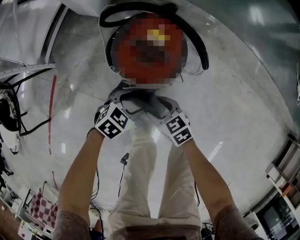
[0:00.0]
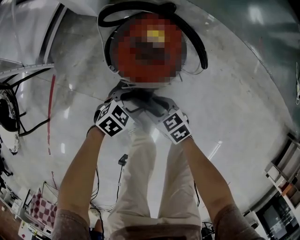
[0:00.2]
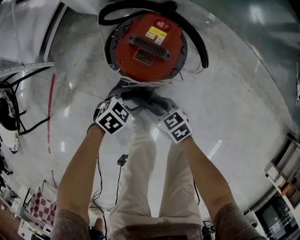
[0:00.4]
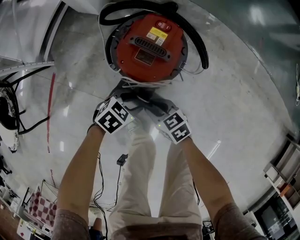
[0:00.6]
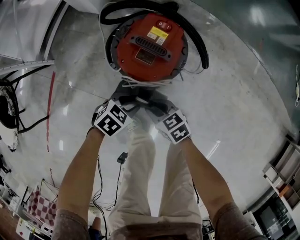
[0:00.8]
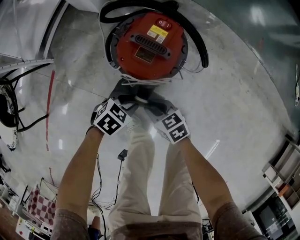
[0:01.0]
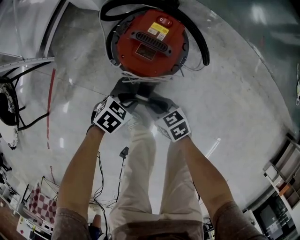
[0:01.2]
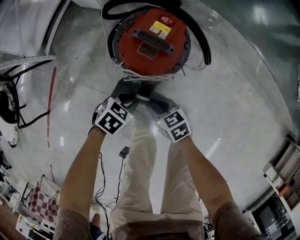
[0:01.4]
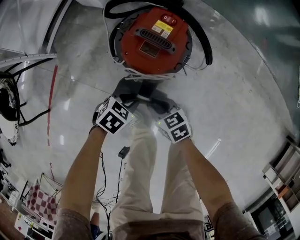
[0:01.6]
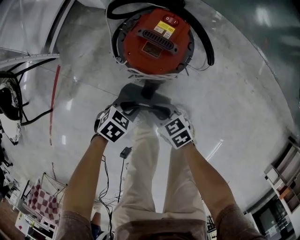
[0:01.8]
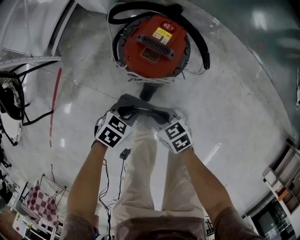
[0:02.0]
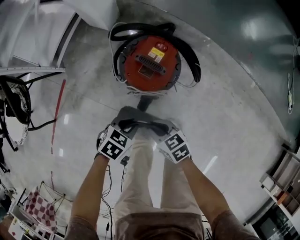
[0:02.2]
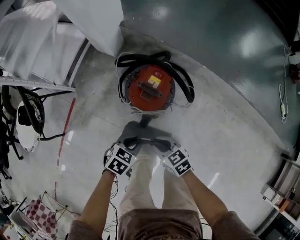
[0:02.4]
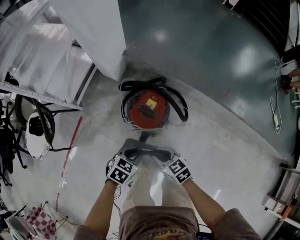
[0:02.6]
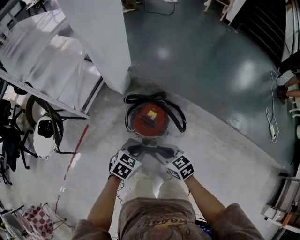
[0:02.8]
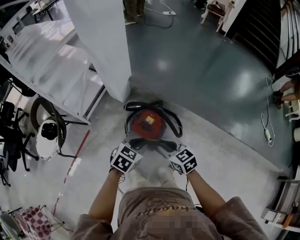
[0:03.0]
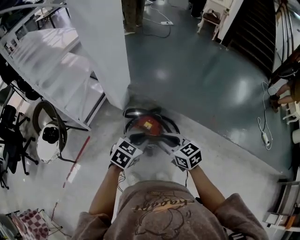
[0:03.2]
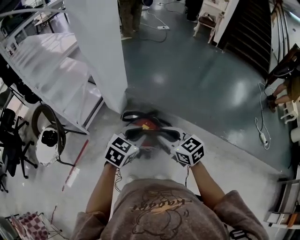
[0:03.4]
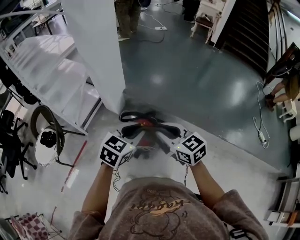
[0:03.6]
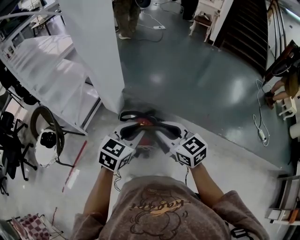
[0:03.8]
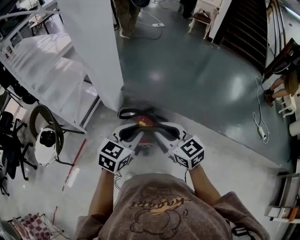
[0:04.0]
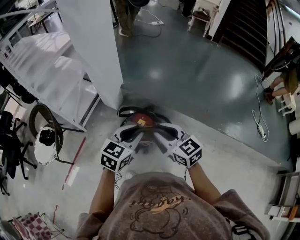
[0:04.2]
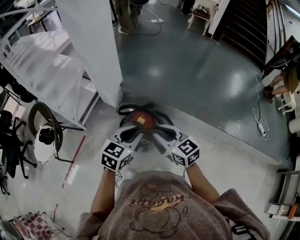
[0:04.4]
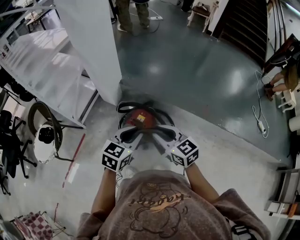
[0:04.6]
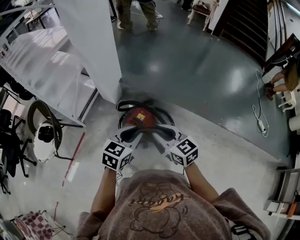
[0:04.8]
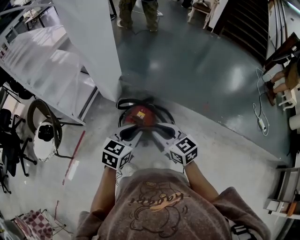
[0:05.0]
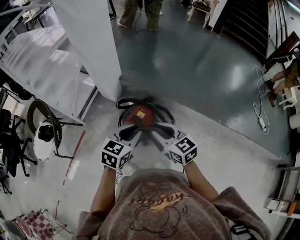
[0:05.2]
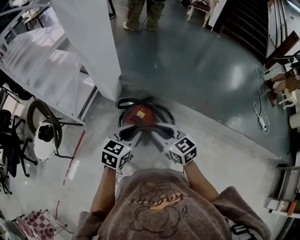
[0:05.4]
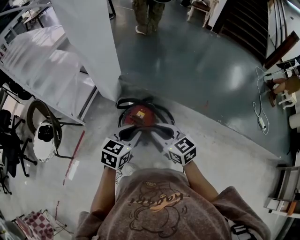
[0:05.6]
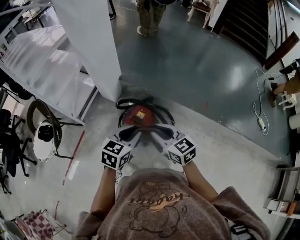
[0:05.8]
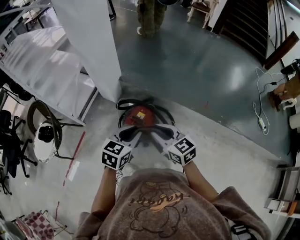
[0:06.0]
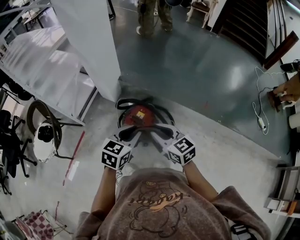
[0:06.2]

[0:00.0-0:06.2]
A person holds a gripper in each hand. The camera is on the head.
0.0 to 1.6 s: The right gripper closes its fingers. The left gripper closes its fingers.
1.6 to 3.2 s: Both grippers move upward, roughly 50 cm. The left gripper swivels about 30 degrees; the right gripper turns by approximately 30 degrees.
4.6 to 6.2 s: The grippers stay close to where they were, moving slightly.

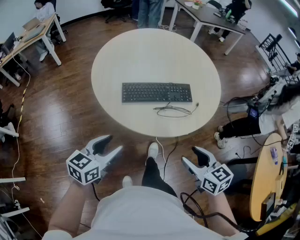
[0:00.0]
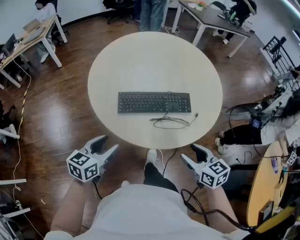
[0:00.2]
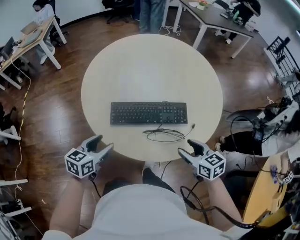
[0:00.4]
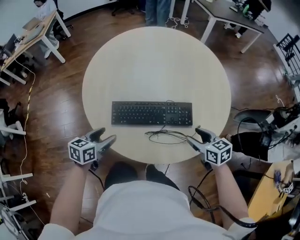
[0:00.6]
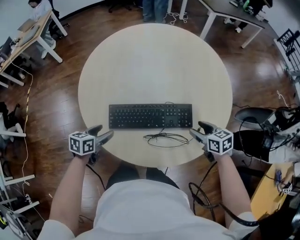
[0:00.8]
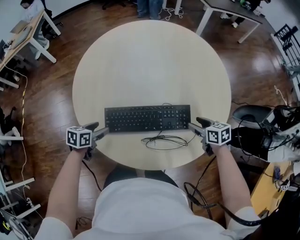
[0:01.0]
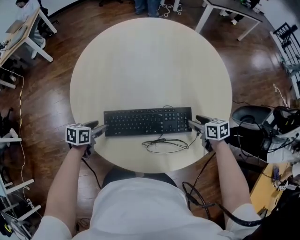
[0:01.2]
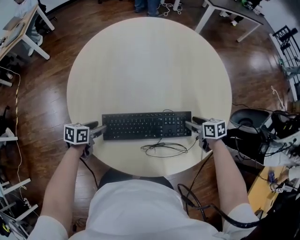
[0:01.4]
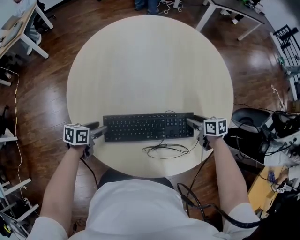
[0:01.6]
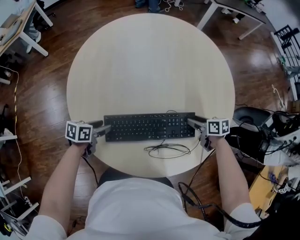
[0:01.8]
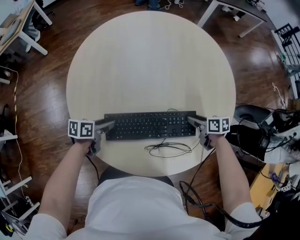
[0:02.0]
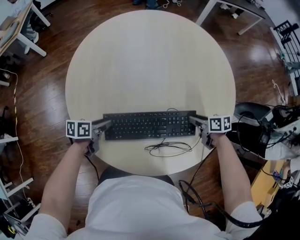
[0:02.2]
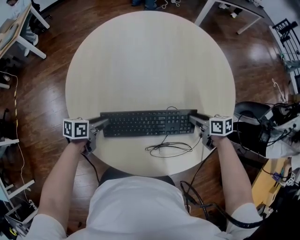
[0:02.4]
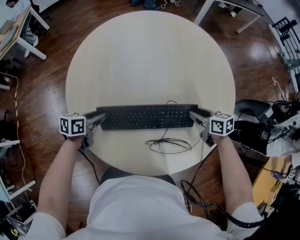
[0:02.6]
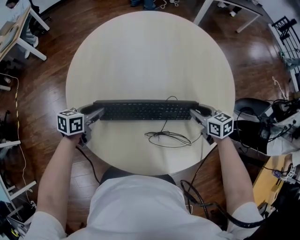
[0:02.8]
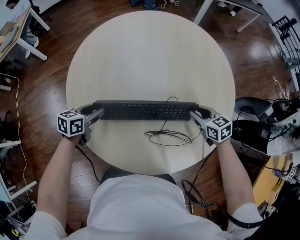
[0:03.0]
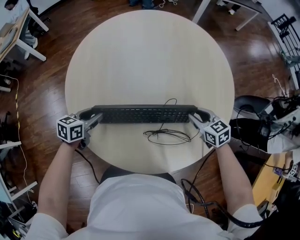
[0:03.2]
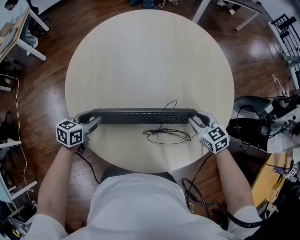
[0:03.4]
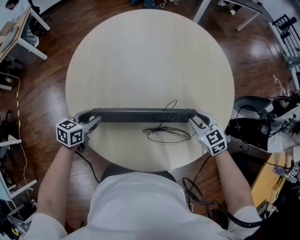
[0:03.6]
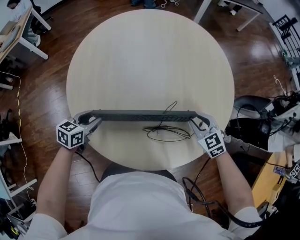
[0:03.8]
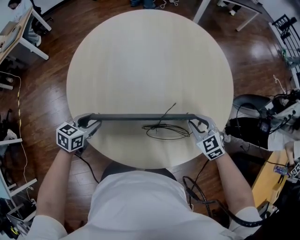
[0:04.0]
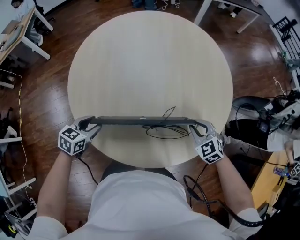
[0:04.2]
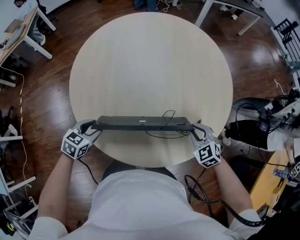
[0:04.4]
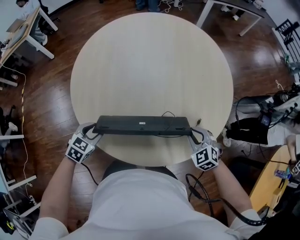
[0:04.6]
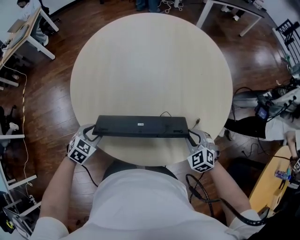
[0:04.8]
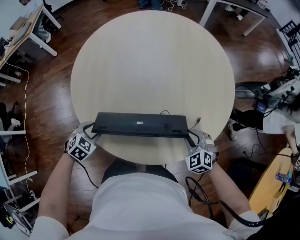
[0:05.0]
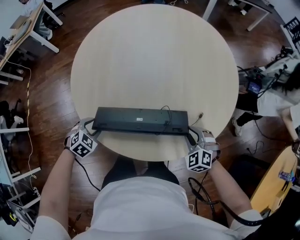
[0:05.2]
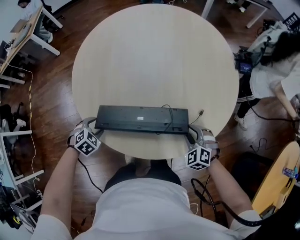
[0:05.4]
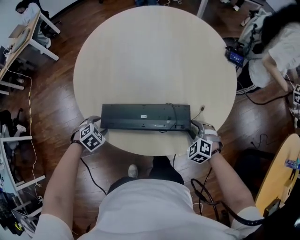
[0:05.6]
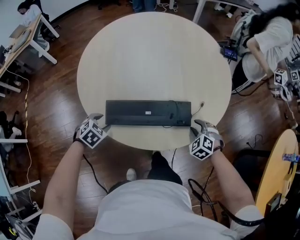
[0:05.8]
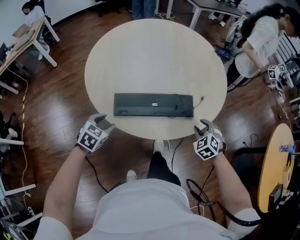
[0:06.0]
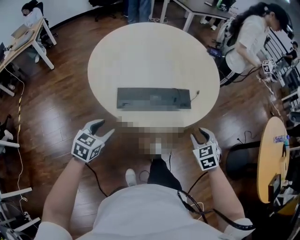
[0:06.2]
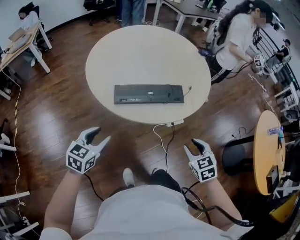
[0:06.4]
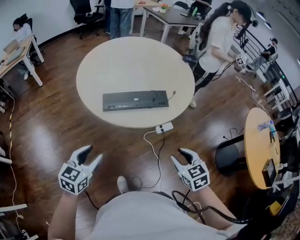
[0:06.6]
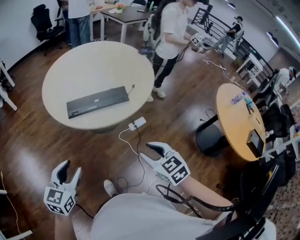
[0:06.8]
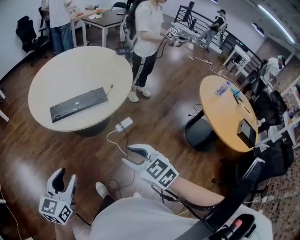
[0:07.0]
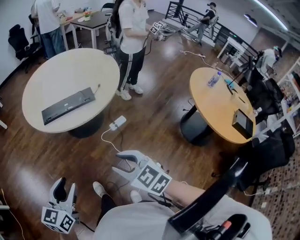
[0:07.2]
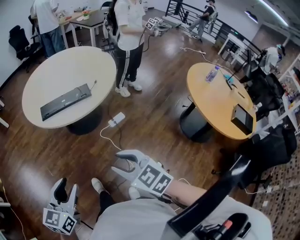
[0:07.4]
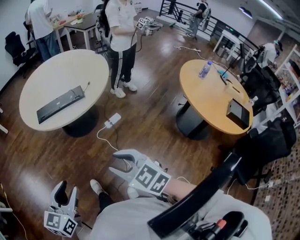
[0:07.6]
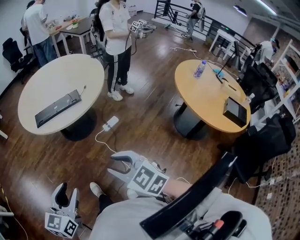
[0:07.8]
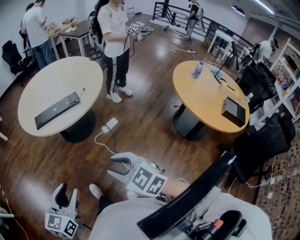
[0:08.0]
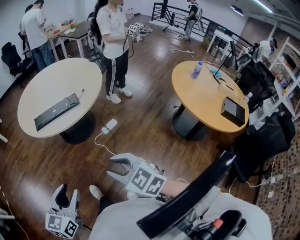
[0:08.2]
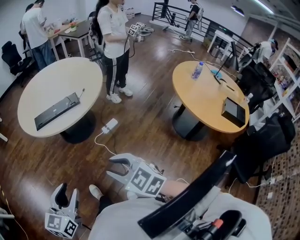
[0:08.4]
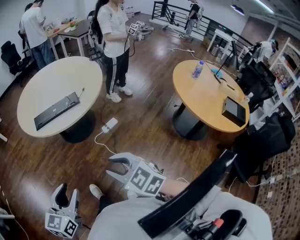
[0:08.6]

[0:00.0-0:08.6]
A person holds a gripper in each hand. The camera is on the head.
0.0 to 1.4 s: The right gripper travels forward, downward and to the right by approximately 40 cm, and swivels some 30 degrees. Meanwhile the left gripper goes about 35 cm forward and downward, and swivels about 30 degrees.
1.4 to 2.8 s: The left gripper moves upward and forward, roughly 10 cm, and closes its fingers. Meanwhile the right gripper travels upward by some 5 cm, and closes its fingers.
2.8 to 4.4 s: Both grippers travel together backward, roughly 15 cm. The right gripper rotates around the line of its fingers by some 40 degrees, counterclockwise from behind. Meanwhile the left gripper swivels about 30 degrees.
4.4 to 5.8 s: The left gripper shifts by roughly 5 cm, and changes its angle by some 30 degrees; the right gripper goes roughly 5 cm downward, turns by some 20 degrees, and opens.
5.8 to 7.2 s: The two grippers travel together, backward, approximately 40 cm. The grippers both shift upward by about 25 cm. The right gripper swivels approximately 50 degrees, while the left gripper angles its fingers upward, by roughly 50 degrees.
7.2 to 8.6 s: The right gripper heads backward, covering about 5 cm. The left gripper is displaced backward and to the right by roughly 10 cm.

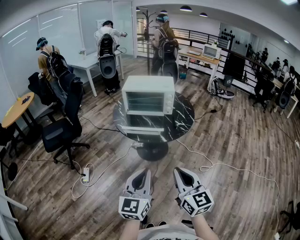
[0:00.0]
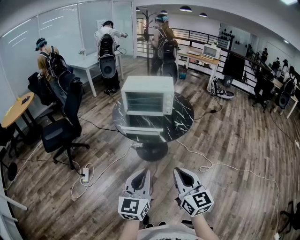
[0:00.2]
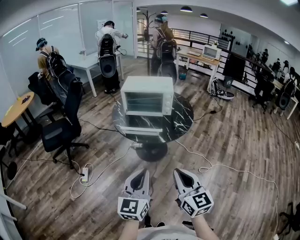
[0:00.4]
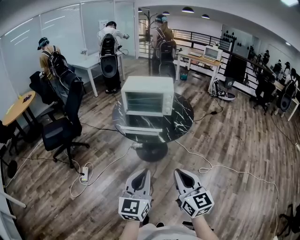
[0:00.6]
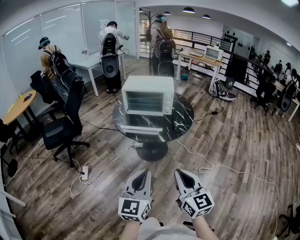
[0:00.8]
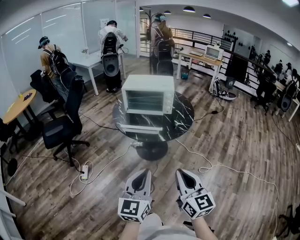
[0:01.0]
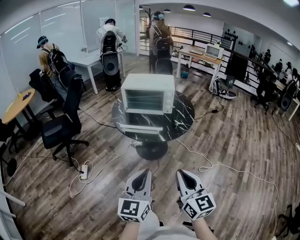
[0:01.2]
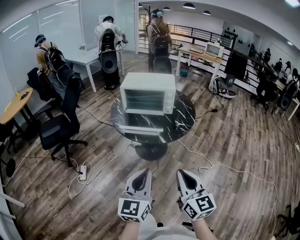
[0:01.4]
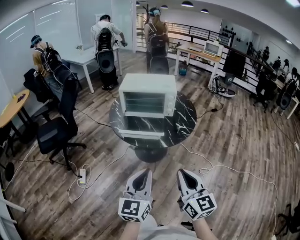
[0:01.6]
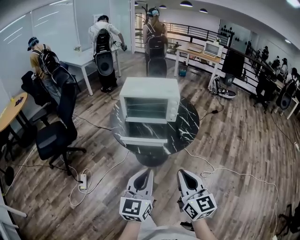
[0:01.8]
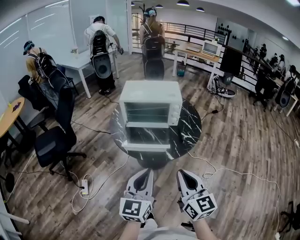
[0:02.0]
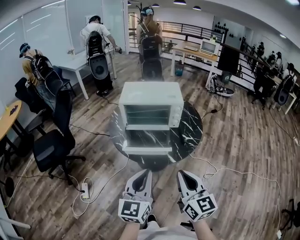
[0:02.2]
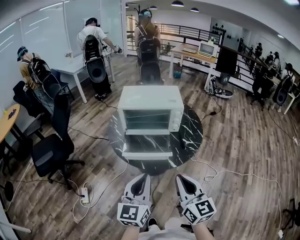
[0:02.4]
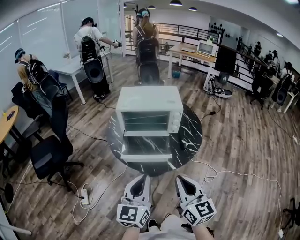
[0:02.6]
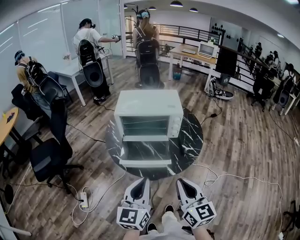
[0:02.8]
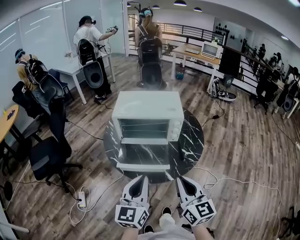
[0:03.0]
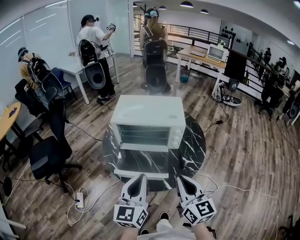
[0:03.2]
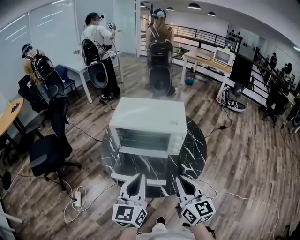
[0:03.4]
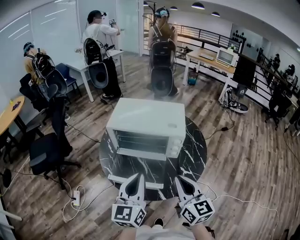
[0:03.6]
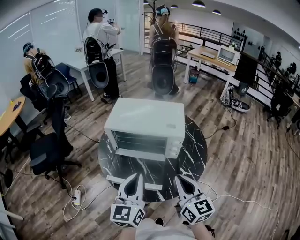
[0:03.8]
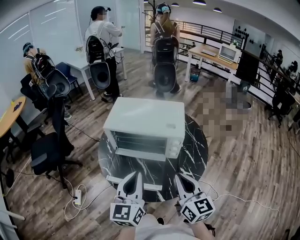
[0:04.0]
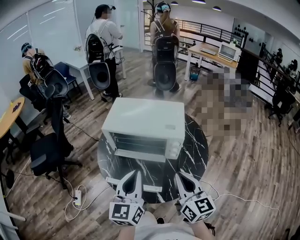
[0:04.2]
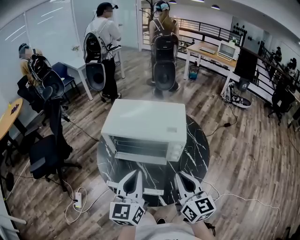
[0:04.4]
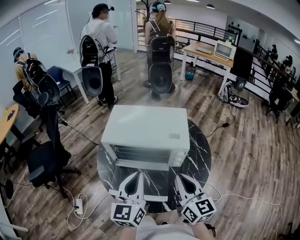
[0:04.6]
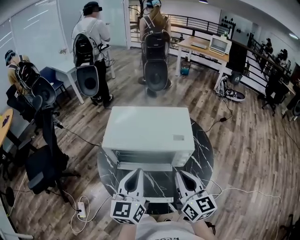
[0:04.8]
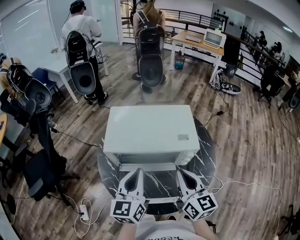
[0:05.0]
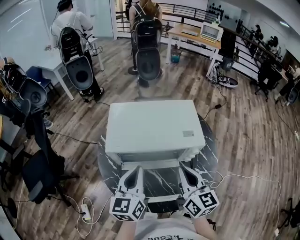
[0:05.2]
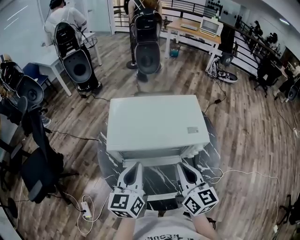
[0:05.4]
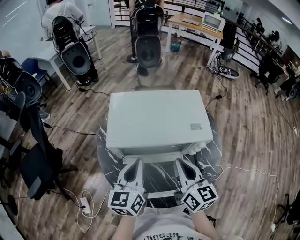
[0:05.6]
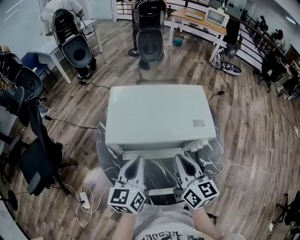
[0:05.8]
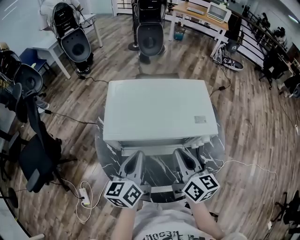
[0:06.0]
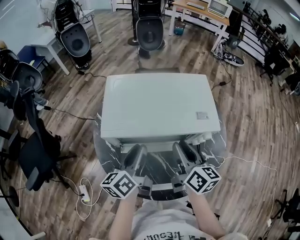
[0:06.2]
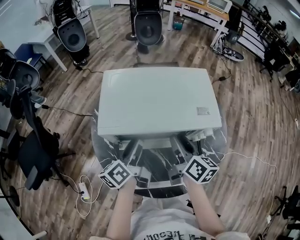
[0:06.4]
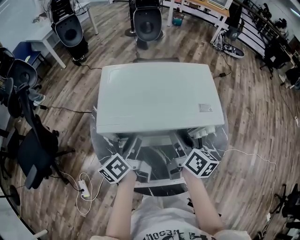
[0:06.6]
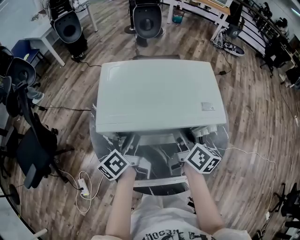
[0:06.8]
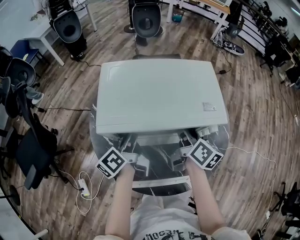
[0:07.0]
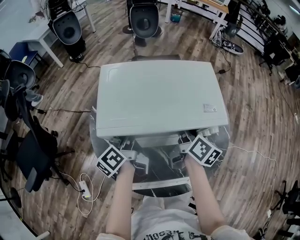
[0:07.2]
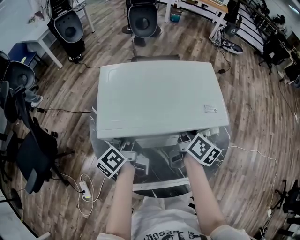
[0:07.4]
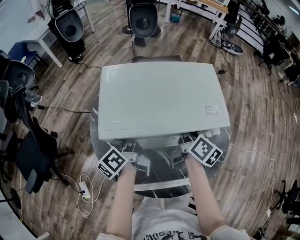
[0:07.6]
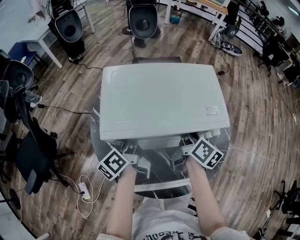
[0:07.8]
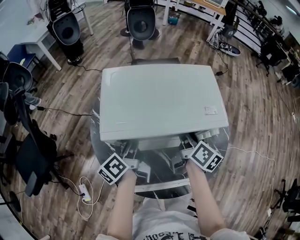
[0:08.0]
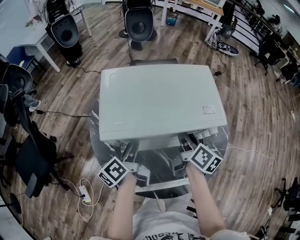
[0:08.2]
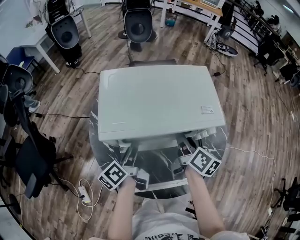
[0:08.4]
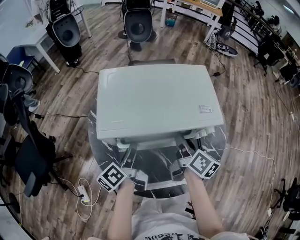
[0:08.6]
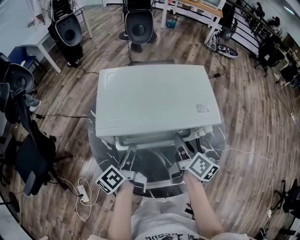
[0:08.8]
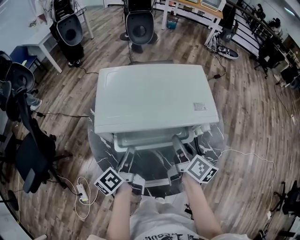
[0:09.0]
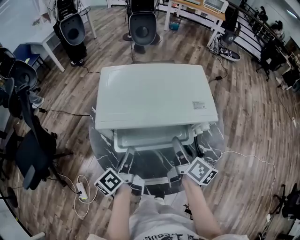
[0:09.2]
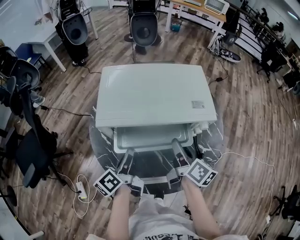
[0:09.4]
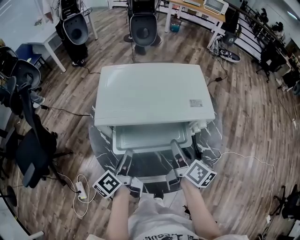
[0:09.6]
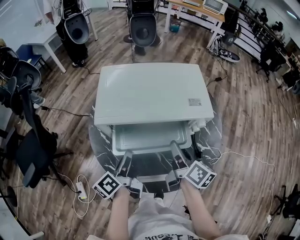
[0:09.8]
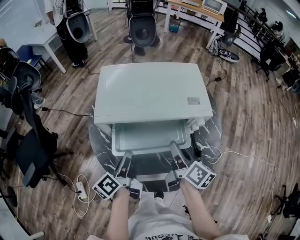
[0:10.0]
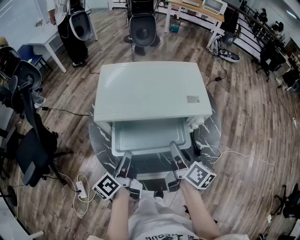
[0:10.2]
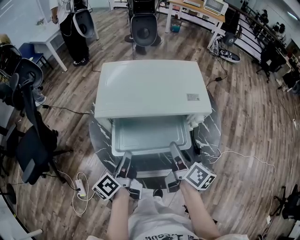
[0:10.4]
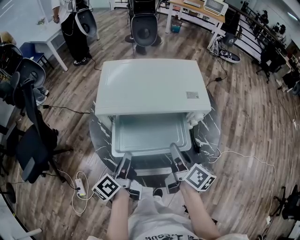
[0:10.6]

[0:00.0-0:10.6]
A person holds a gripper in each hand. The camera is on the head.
0.0 to 1.6 s: Both grippers move forward, some 5 cm.
1.6 to 3.0 s: Both grippers travel together forward, roughly 20 cm.
3.0 to 4.6 s: Both grippers travel together forward, roughly 20 cm.
4.6 to 6.0 s: The left gripper goes about 15 cm downward, forward and to the left, and turns by roughly 30 degrees; the right gripper moves to the left, forward and downward, some 15 cm.
6.0 to 7.6 s: The right gripper travels forward and downward by about 10 cm, rotates some 30 degrees, and opens, while the left gripper shifts about 10 cm downward and forward, swivels approximately 40 degrees, and opens.
7.6 to 9.0 s: Both grippers travel together backward, some 10 cm.
9.0 to 10.6 s: Both grippers travel together backward, about 10 cm.
